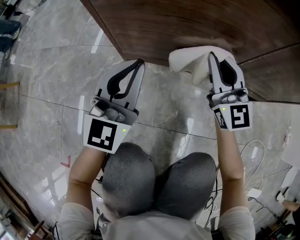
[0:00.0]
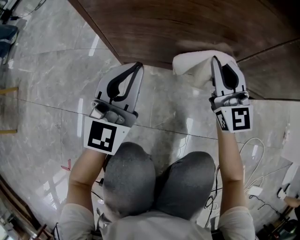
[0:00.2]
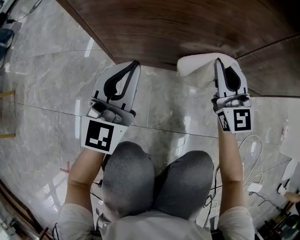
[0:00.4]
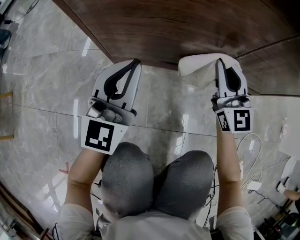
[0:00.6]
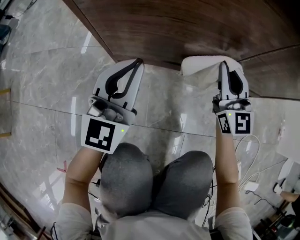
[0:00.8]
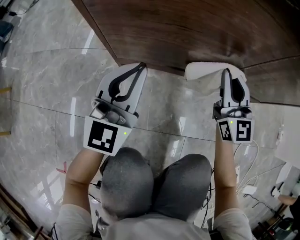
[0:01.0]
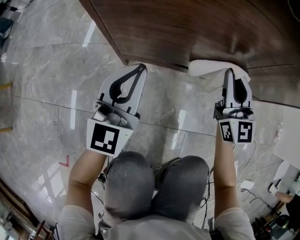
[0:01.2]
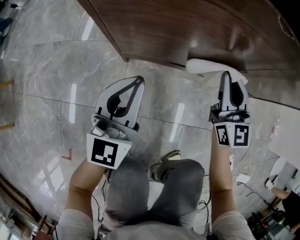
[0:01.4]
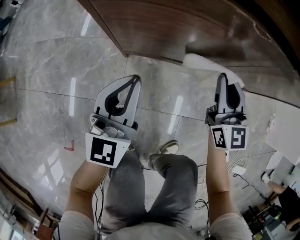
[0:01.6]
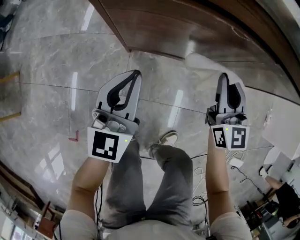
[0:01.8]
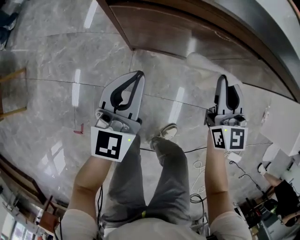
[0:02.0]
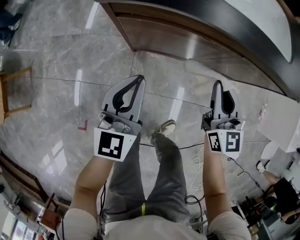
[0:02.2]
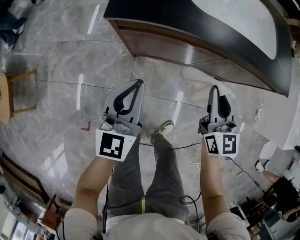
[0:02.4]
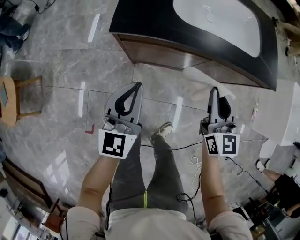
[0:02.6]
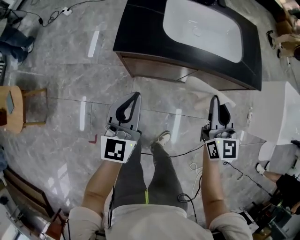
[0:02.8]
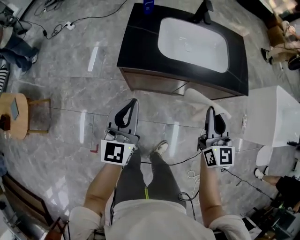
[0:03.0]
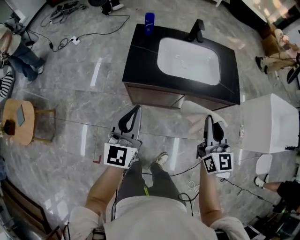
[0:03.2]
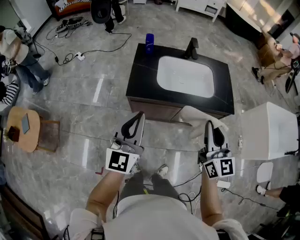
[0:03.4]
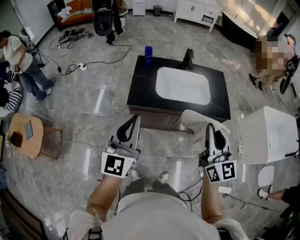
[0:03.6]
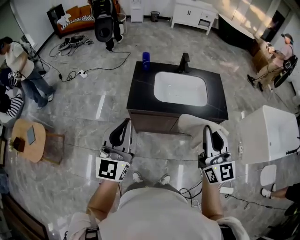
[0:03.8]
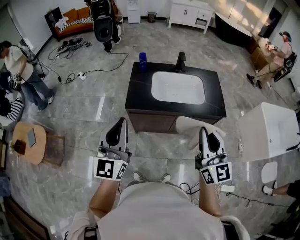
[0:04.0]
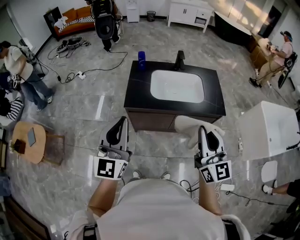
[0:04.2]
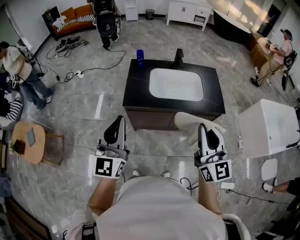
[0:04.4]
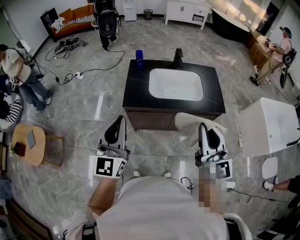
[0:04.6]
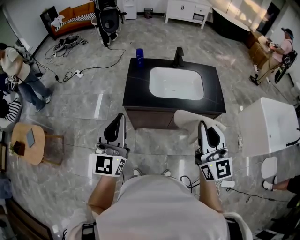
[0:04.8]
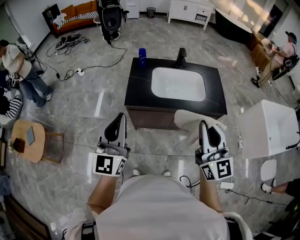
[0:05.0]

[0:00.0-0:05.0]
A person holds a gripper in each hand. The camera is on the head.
0:00.0 to 0:01.6: Both grippers move upward, approximately 10 cm.
0:01.6 to 0:03.4: The two grippers go approximately 70 cm upward.
0:03.4 to 0:05.0: Both grippers move upward and backward, roughly 10 cm.

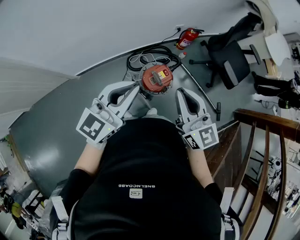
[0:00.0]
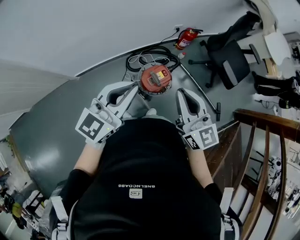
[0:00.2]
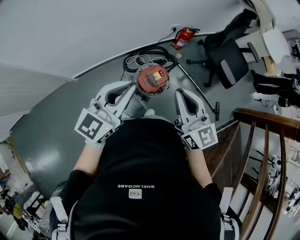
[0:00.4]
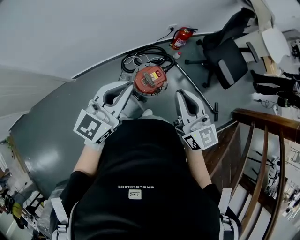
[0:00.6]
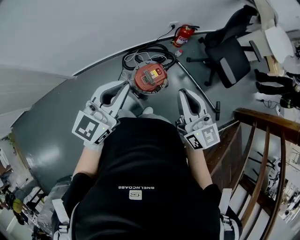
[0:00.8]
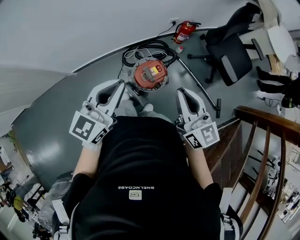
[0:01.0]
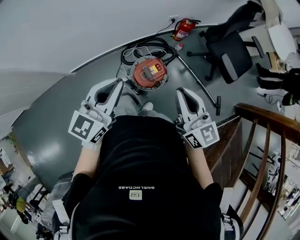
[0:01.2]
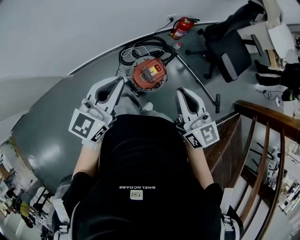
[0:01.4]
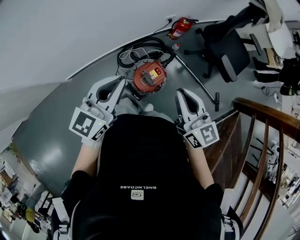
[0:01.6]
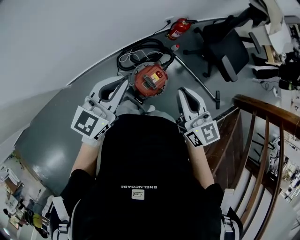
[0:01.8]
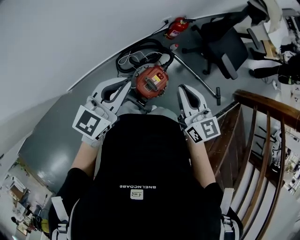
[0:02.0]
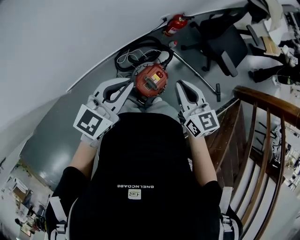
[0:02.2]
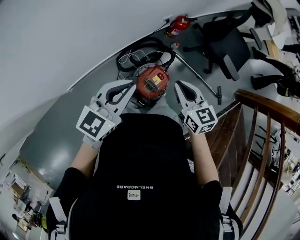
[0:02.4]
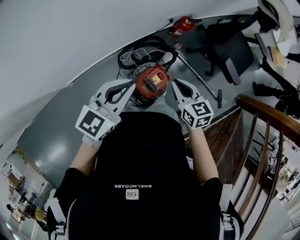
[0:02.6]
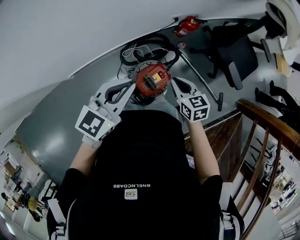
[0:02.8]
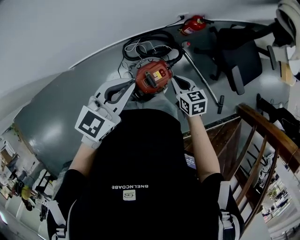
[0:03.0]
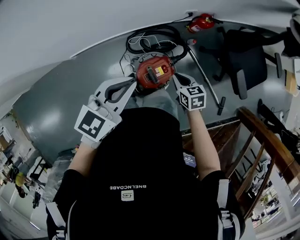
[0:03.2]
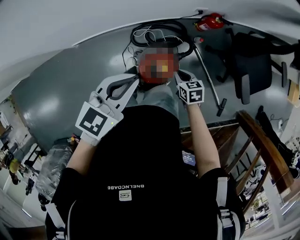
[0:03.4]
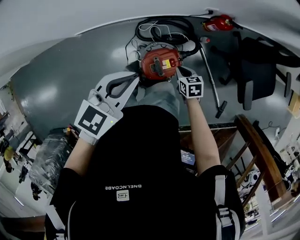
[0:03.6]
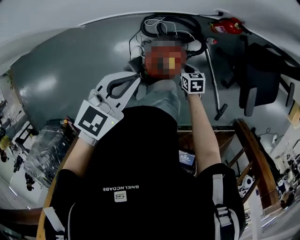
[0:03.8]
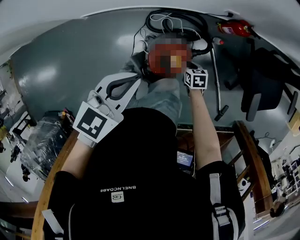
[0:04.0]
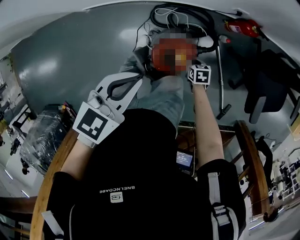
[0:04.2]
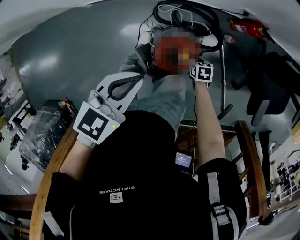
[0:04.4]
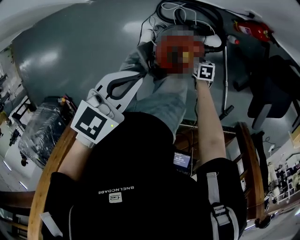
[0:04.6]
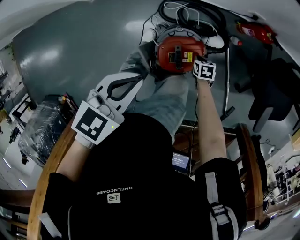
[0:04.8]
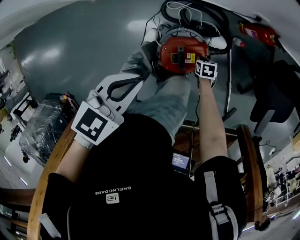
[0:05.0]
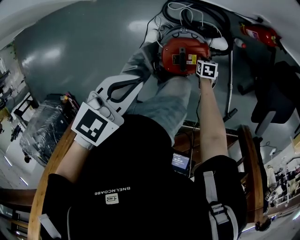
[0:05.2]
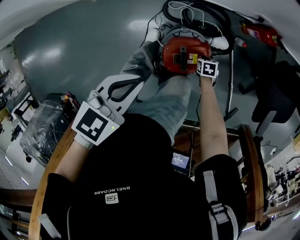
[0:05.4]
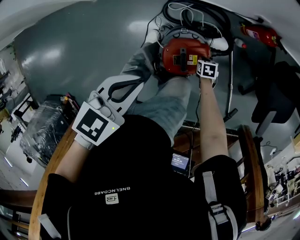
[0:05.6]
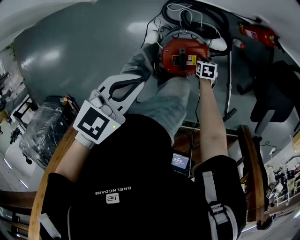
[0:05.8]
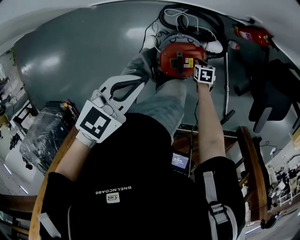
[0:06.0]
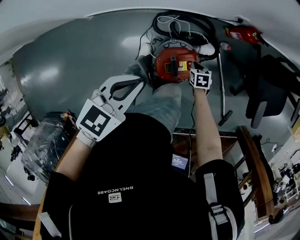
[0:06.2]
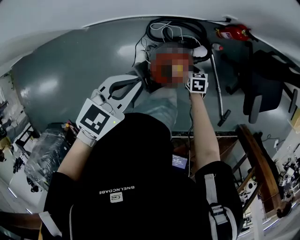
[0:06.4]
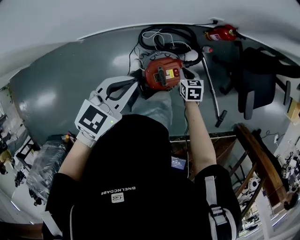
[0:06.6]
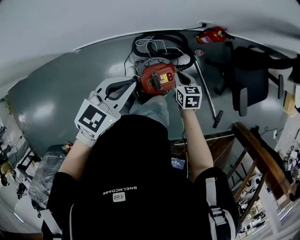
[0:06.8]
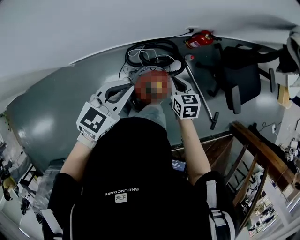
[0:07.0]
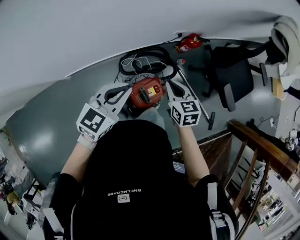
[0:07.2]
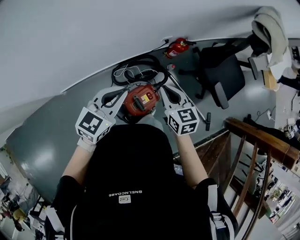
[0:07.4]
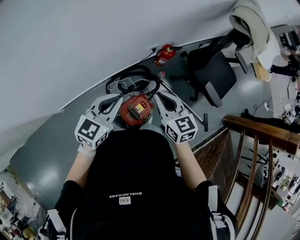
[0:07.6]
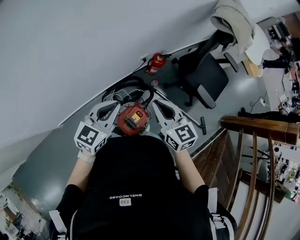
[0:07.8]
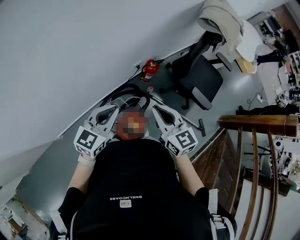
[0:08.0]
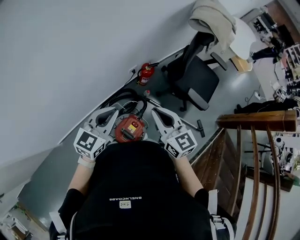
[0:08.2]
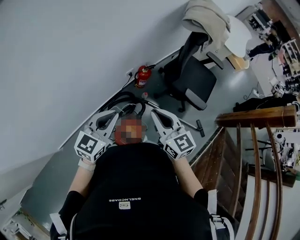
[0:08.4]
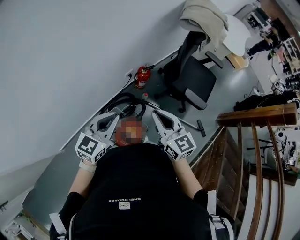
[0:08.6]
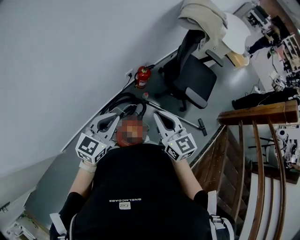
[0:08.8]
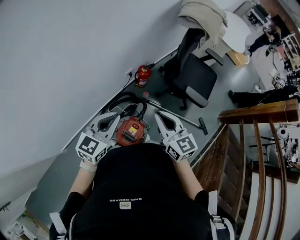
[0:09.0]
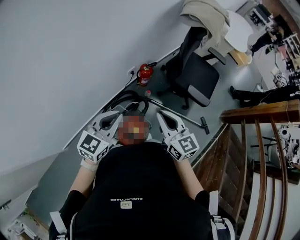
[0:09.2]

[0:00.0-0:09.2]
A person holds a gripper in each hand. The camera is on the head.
0:00.0 to 0:01.6: The right gripper travels forward, downward and to the right by about 15 cm. Meanwhile the left gripper shifts roughly 15 cm forward and downward.
0:01.6 to 0:03.0: The right gripper travels downward and forward by roughly 25 cm, and points its fingers roughly 40 degrees further downward. The left gripper shifts approximately 10 cm forward.
0:03.0 to 0:04.6: The left gripper moves downward, some 20 cm, and rotates approximately 30 degrees. The right gripper moves downward, some 40 cm, and turns by roughly 30 degrees.
0:04.6 to 0:06.2: The right gripper goes approximately 5 cm upward.
0:06.2 to 0:07.6: The left gripper moves upward, to the right and forward, approximately 20 cm, and changes its angle by about 30 degrees, while the right gripper heads upward, covering about 50 cm, and tips its fingers upward by about 40 degrees.
0:07.6 to 0:09.2: The two grippers go roughly 10 cm to the right and upward. The right gripper swivels approximately 20 degrees.

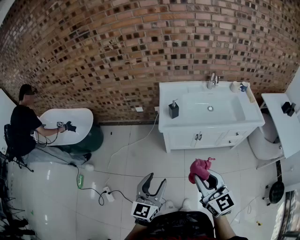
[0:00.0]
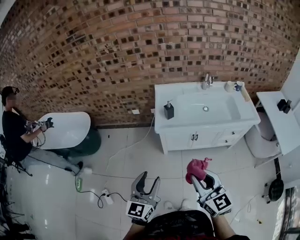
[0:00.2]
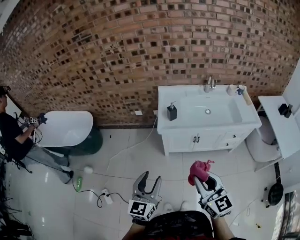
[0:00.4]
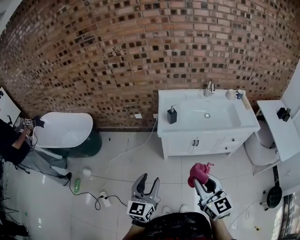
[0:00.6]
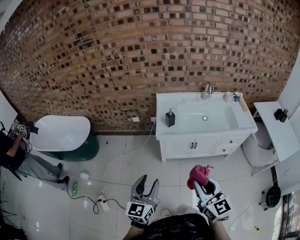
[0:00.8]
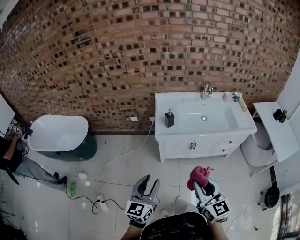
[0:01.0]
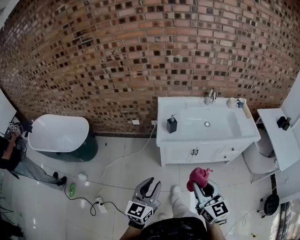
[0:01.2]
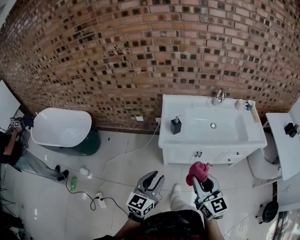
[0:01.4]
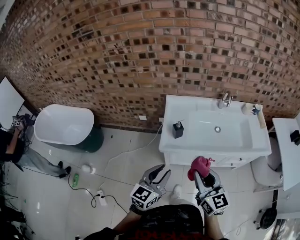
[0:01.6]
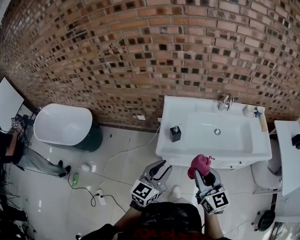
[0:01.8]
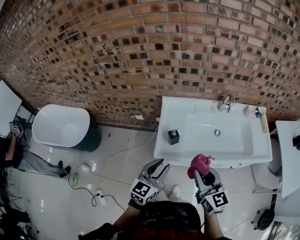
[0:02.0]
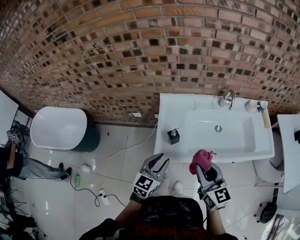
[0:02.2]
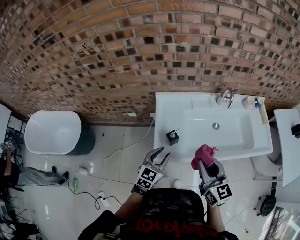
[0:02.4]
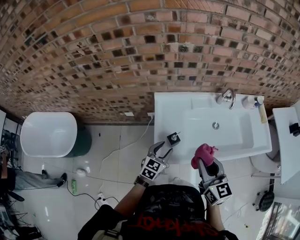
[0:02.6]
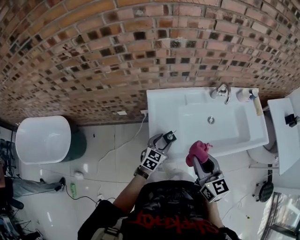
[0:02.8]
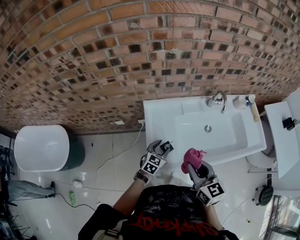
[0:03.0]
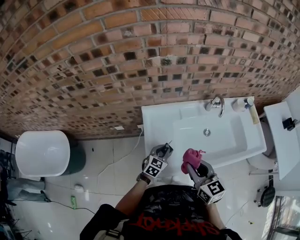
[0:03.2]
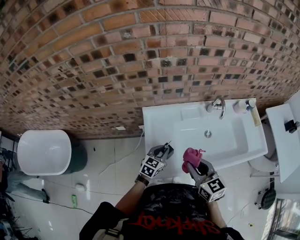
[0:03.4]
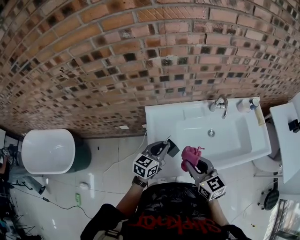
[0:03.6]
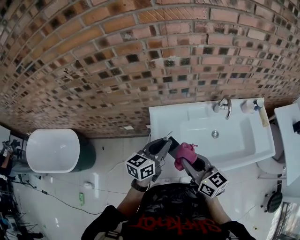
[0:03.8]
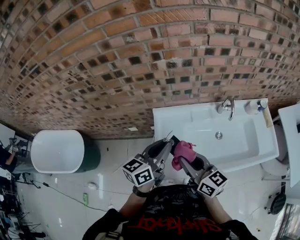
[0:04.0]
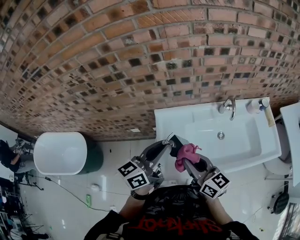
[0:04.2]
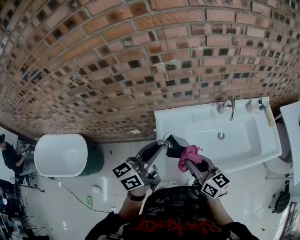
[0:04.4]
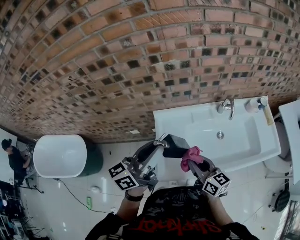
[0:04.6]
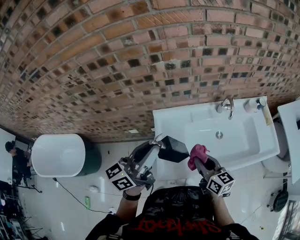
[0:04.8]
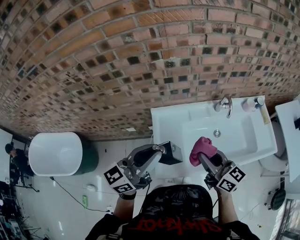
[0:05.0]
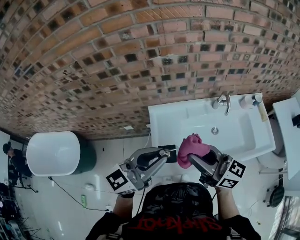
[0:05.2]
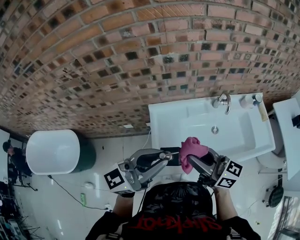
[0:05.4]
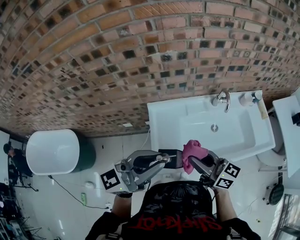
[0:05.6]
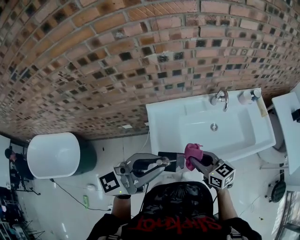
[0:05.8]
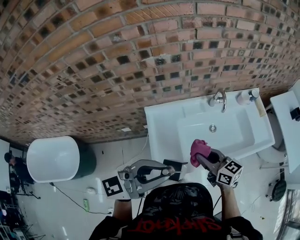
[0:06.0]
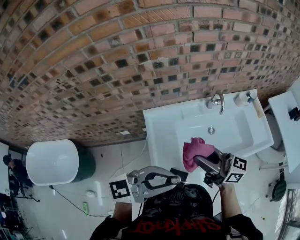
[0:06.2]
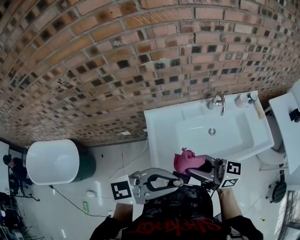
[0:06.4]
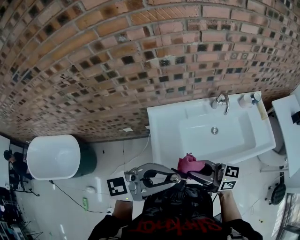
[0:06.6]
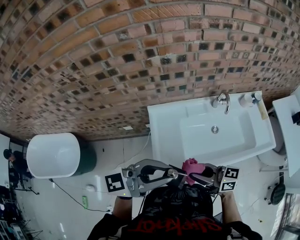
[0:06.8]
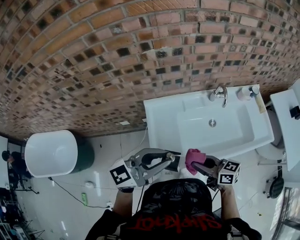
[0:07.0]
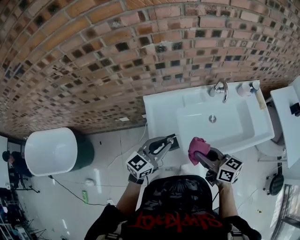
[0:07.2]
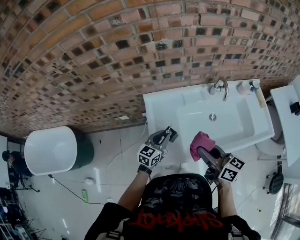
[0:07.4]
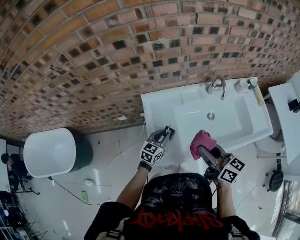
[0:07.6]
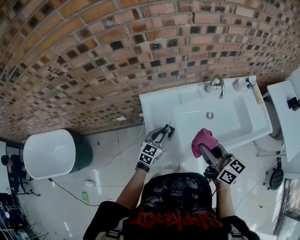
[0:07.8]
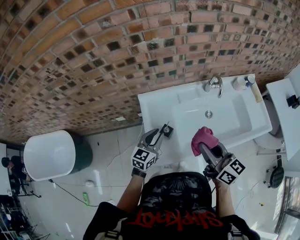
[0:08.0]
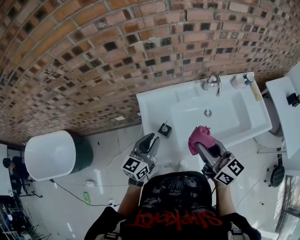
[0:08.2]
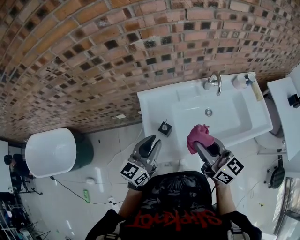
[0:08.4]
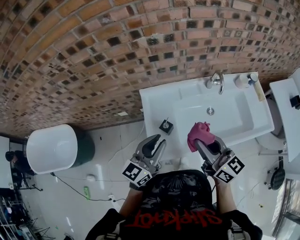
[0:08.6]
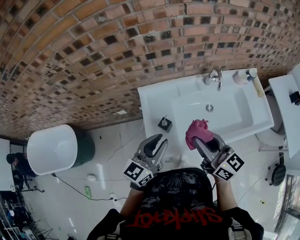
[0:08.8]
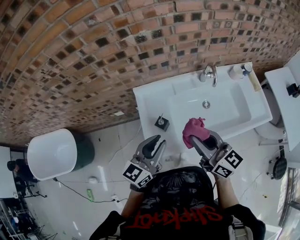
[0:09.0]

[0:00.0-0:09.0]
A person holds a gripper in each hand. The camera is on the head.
0:00.0 to 0:01.6: Both grippers travel together forward, about 20 cm. The left gripper closes up.
0:01.6 to 0:03.0: The left gripper is displaced forward and downward by roughly 40 cm, and swivels approximately 30 degrees. Meanwhile the right gripper heads forward, covering approximately 25 cm.
0:03.0 to 0:04.4: The right gripper heads forward, covering approximately 5 cm, and changes its angle by some 20 degrees. The left gripper goes some 35 cm upward, angles its fingers upward, by roughly 40 degrees, and closes.
0:04.4 to 0:06.0: The right gripper goes up and down, about 15 cm each way, reversing 2 times. Meanwhile the left gripper is displaced backward by about 10 cm, and swivels about 40 degrees.
0:06.0 to 0:07.6: The right gripper goes up and down, about 15 cm each way, reversing 2 times. Meanwhile the left gripper moves downward, roughly 35 cm, and tilts its fingers roughly 30 degrees downward.
0:07.6 to 0:09.0: The left gripper travels upward and backward by some 25 cm, and changes its angle by some 20 degrees.
